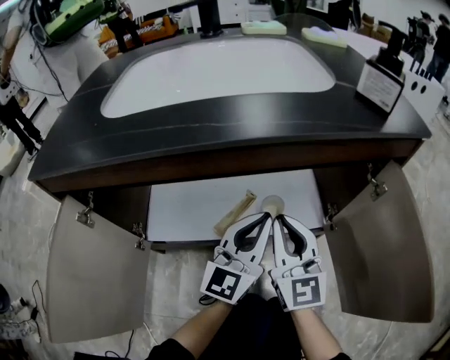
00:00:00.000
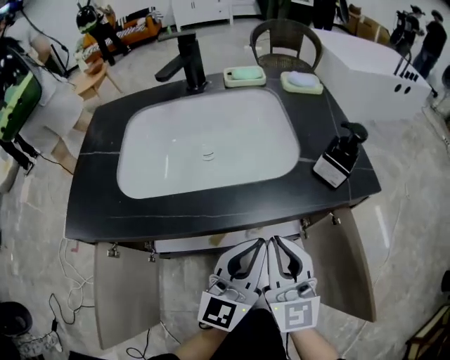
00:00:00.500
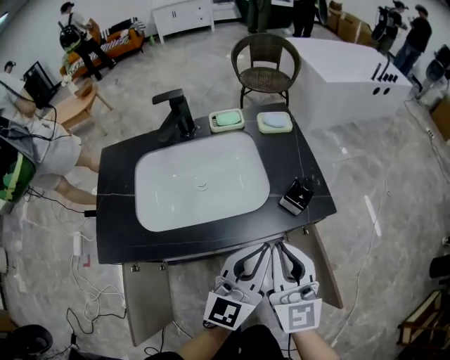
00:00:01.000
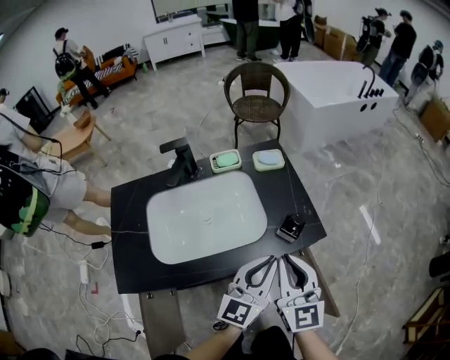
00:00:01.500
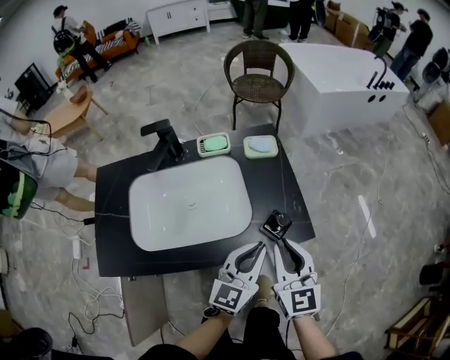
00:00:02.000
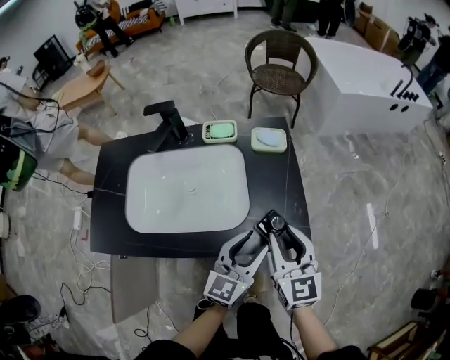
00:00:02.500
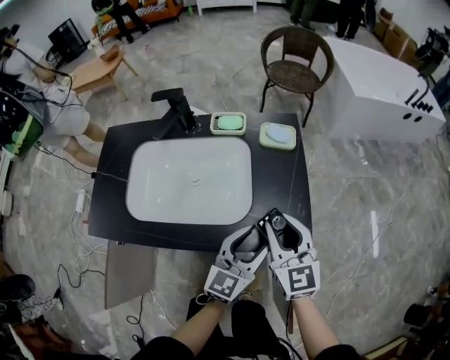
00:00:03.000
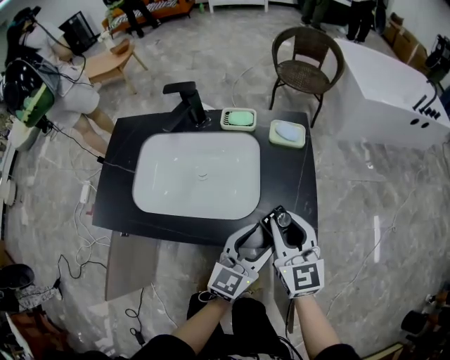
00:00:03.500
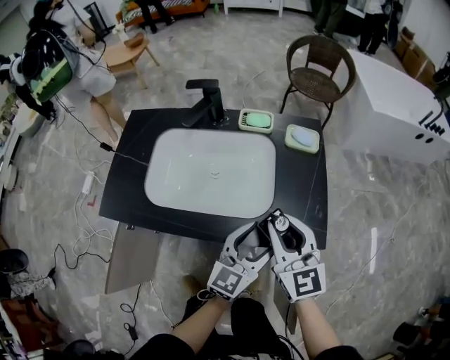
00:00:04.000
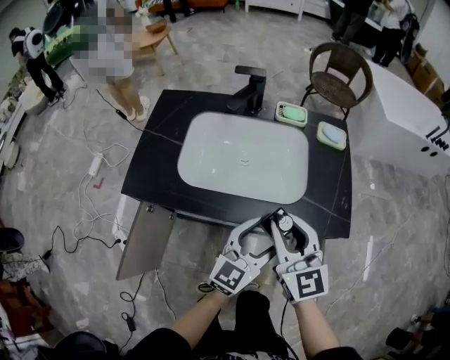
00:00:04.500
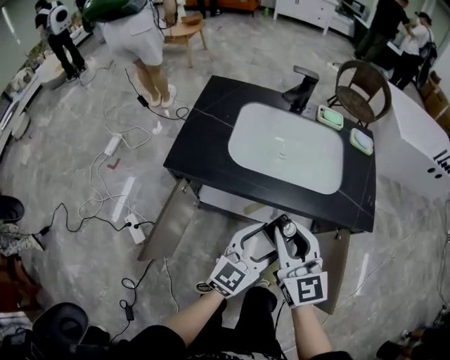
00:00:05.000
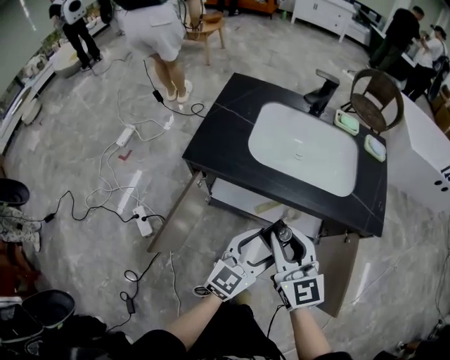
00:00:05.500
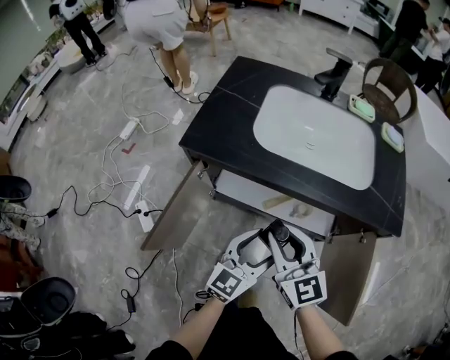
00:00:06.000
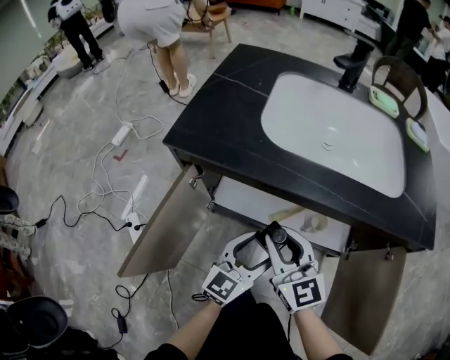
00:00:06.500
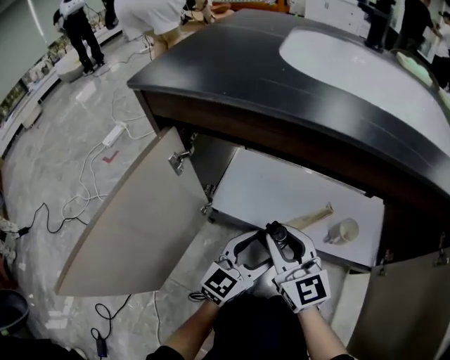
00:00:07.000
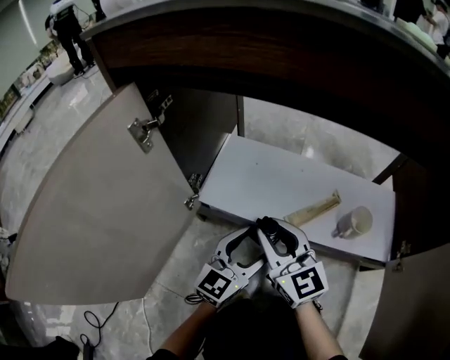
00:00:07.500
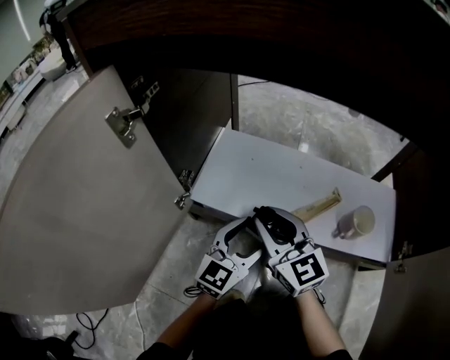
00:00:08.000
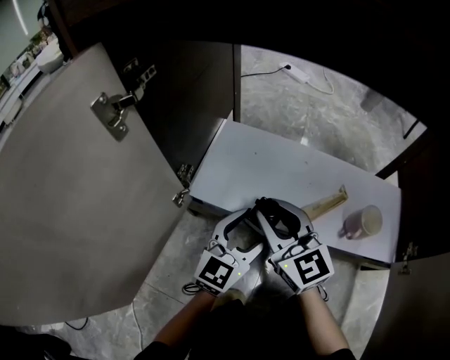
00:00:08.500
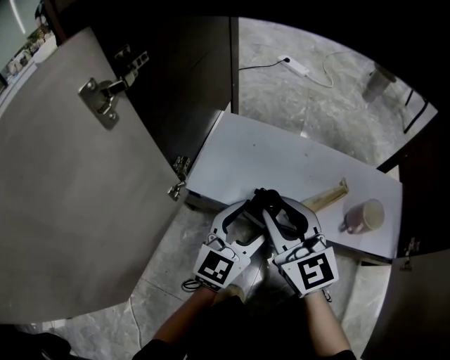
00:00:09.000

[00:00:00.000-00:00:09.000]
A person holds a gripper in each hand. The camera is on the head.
00:00:00.000 to 00:00:02.000: Both grippers move upward, approximately 35 cm. The left gripper rotates some 20 degrees.
00:00:02.000 to 00:00:04.500: The right gripper shifts roughly 15 cm to the left, and turns by approximately 30 degrees, while the left gripper is displaced to the left and backward by about 10 cm, and opens its fingers.
00:00:04.500 to 00:00:07.000: Both grippers move downward and to the left, approximately 50 cm.
00:00:07.000 to 00:00:09.000: The grippers both shift downward and forward by some 15 cm.

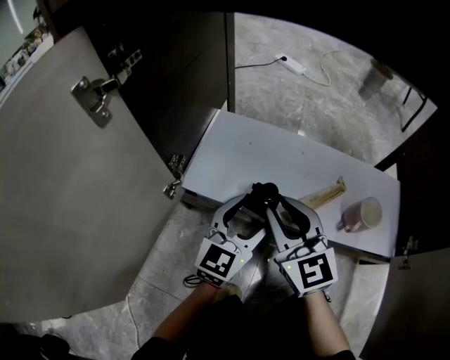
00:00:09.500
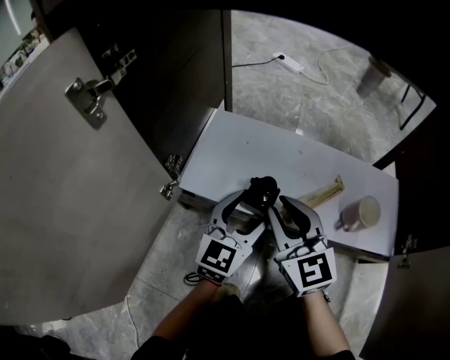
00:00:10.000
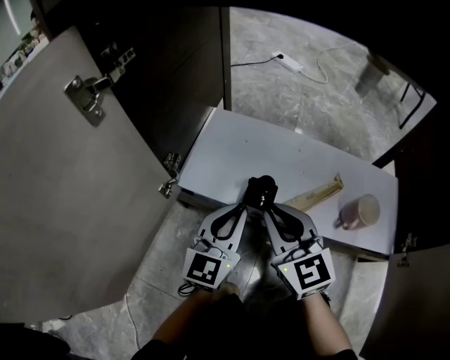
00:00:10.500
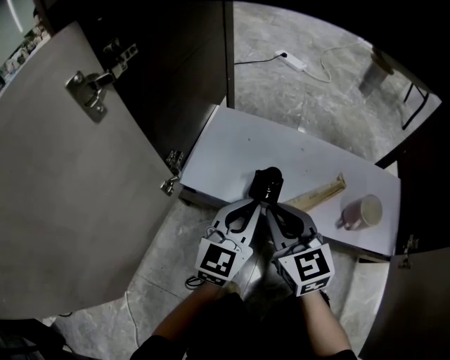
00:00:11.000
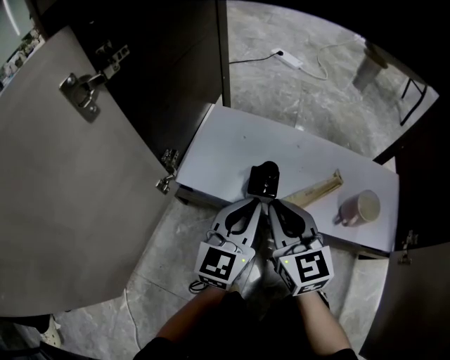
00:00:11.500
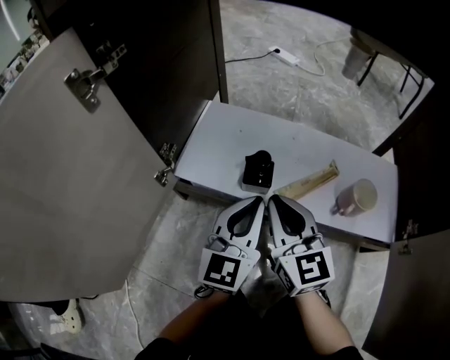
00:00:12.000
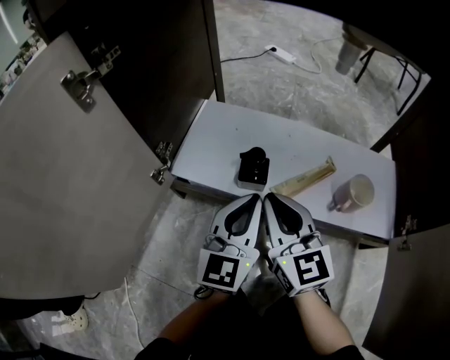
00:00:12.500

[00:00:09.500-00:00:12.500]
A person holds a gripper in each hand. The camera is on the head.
00:00:09.500 to 00:00:11.000: The left gripper closes its fingers.
00:00:11.000 to 00:00:12.500: The left gripper ends up some 5 cm from where it was, while the right gripper ends up some 5 cm from where it was.

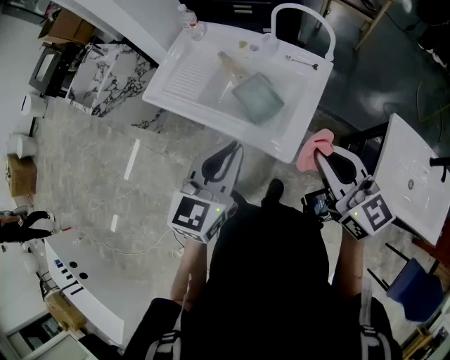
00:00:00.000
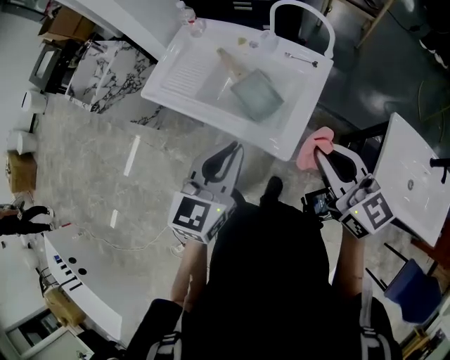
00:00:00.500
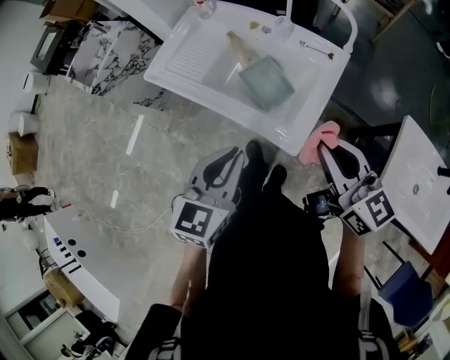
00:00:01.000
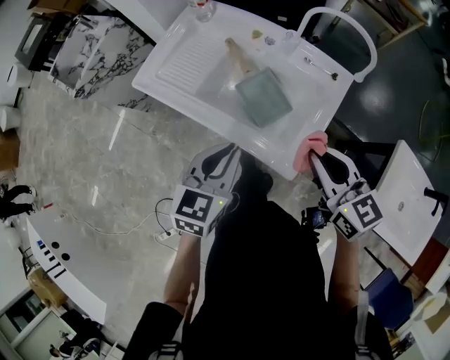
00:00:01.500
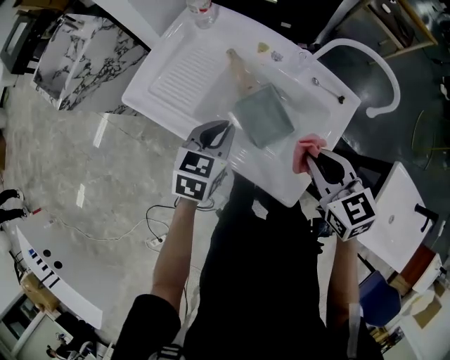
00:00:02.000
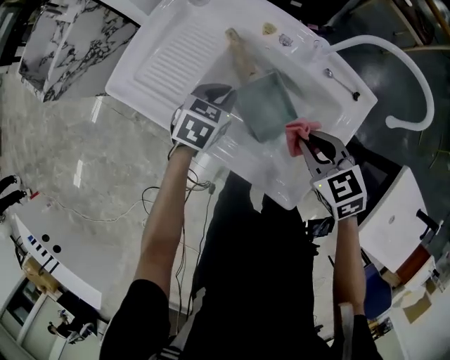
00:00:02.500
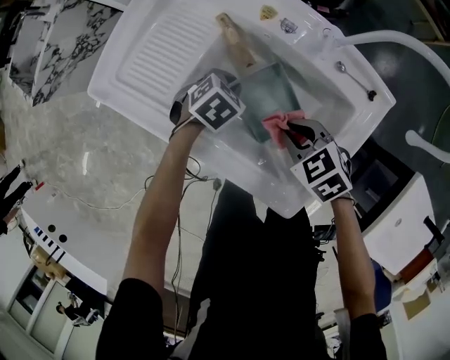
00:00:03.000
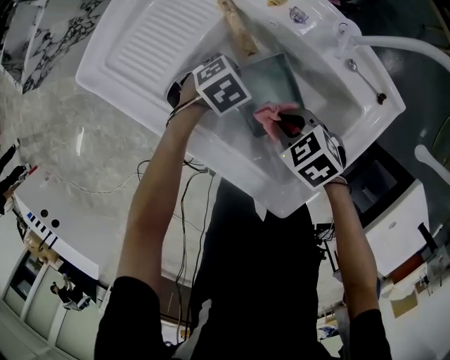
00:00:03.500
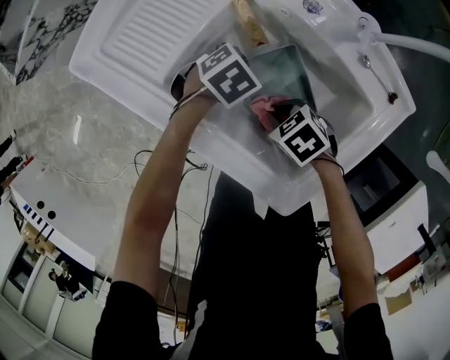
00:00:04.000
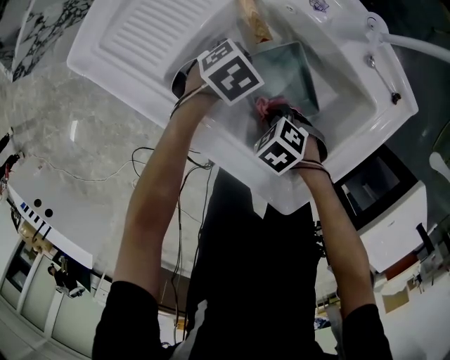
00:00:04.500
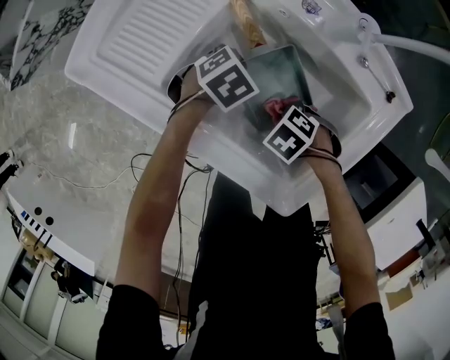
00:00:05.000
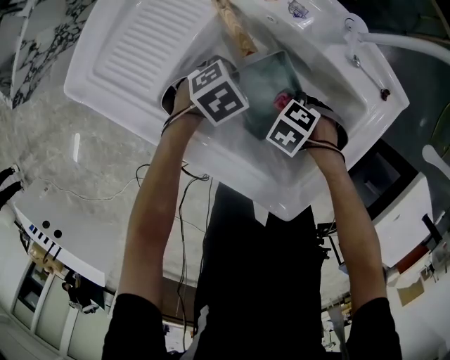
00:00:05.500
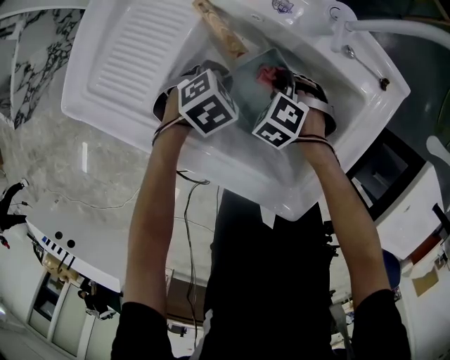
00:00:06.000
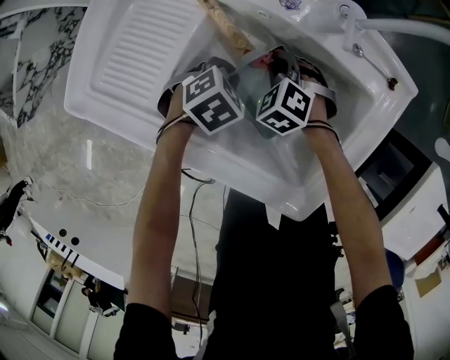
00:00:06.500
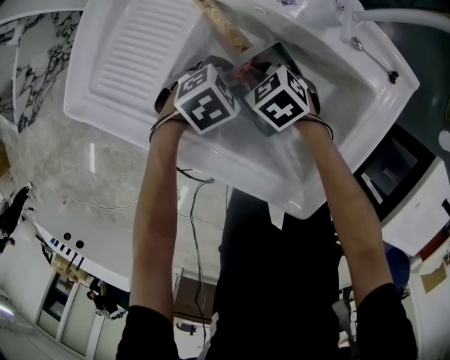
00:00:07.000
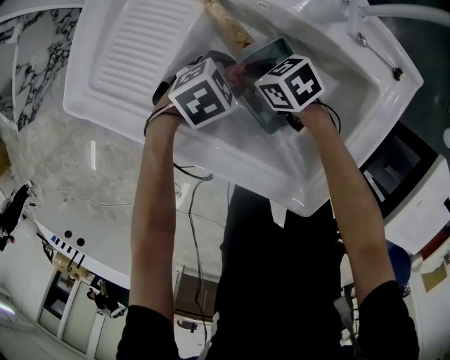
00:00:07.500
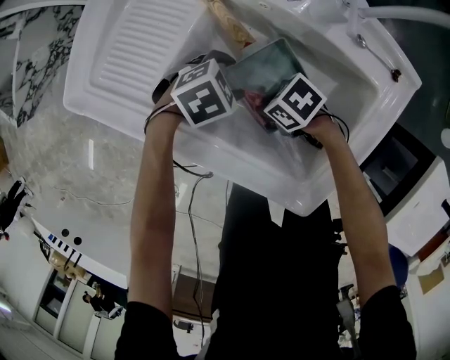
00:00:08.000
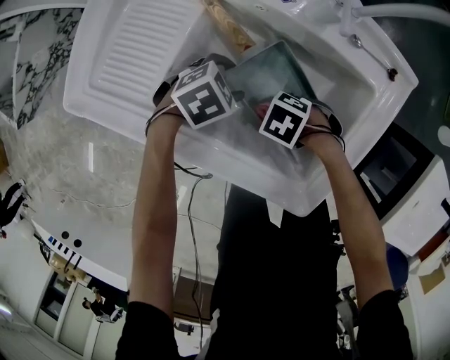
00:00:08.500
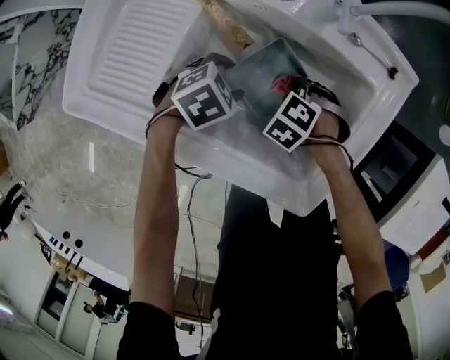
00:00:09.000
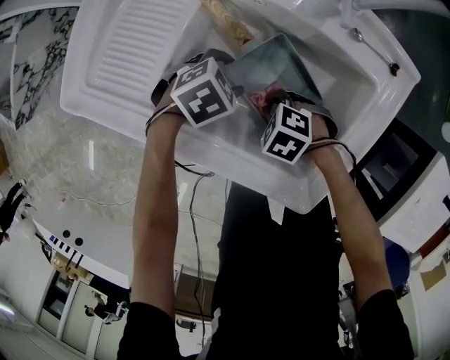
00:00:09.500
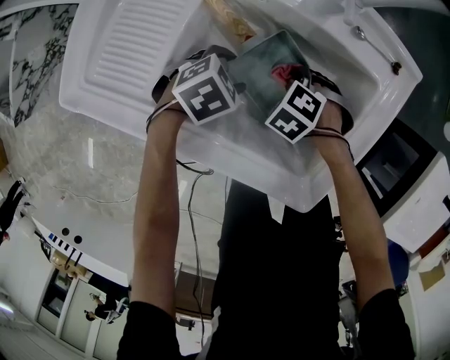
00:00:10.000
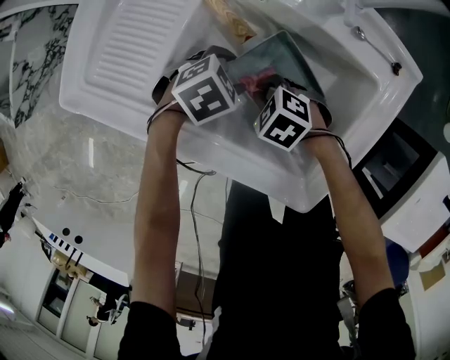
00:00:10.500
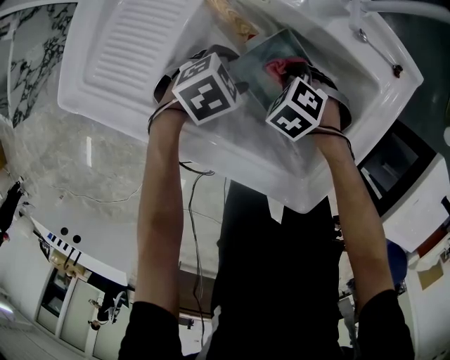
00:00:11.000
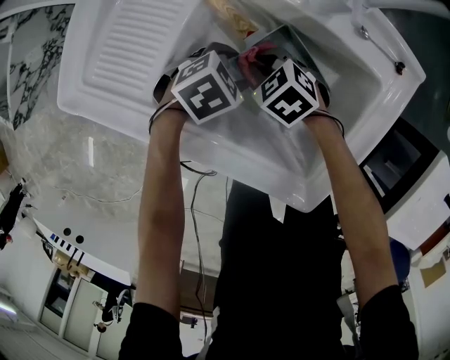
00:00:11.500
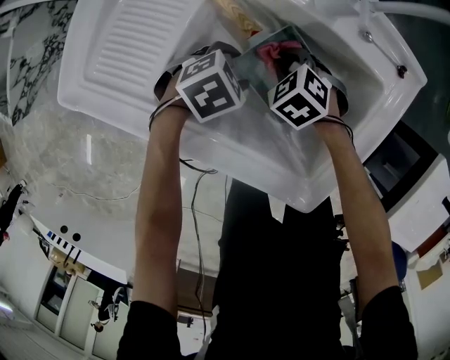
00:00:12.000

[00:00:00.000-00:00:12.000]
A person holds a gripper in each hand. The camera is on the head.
00:00:00.000 to 00:00:02.000: Both grippers move forward and downward, roughly 25 cm. The right gripper swivels about 30 degrees. The left gripper swivels about 20 degrees.
00:00:02.000 to 00:00:04.000: Both grippers travel together downward, about 30 cm. The left gripper points its fingers about 30 degrees further downward, while the right gripper rotates some 50 degrees.
00:00:04.000 to 00:00:06.000: The right gripper changes place by approximately 10 cm, and rotates about 40 degrees.
00:00:06.000 to 00:00:08.000: The left gripper opens; the right gripper changes place by about 10 cm, and swivels roughly 60 degrees.
00:00:08.000 to 00:00:10.000: The right gripper ends up approximately 10 cm from where it was, and points its fingers some 30 degrees further downward.

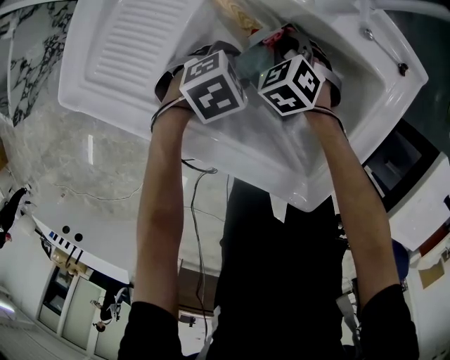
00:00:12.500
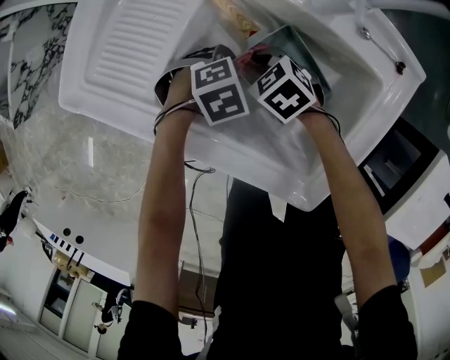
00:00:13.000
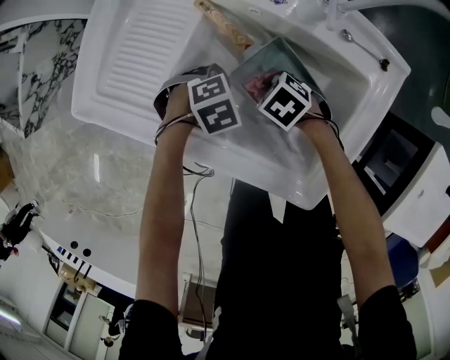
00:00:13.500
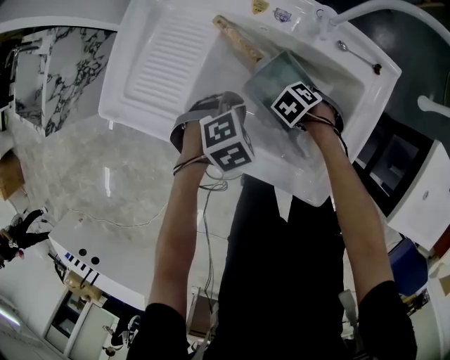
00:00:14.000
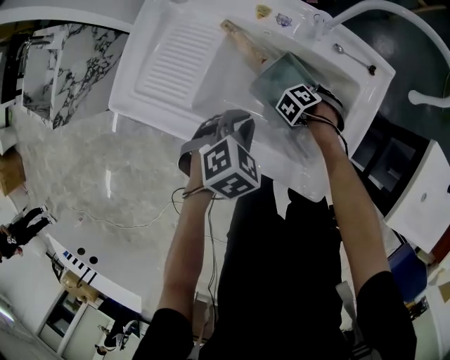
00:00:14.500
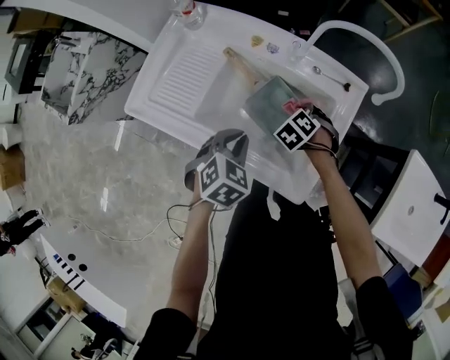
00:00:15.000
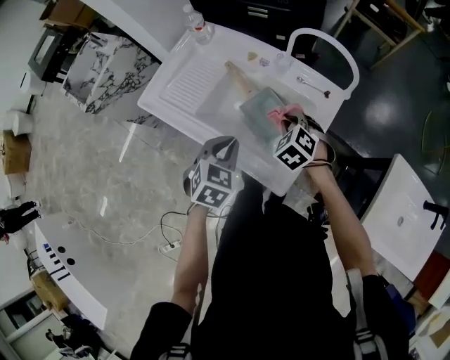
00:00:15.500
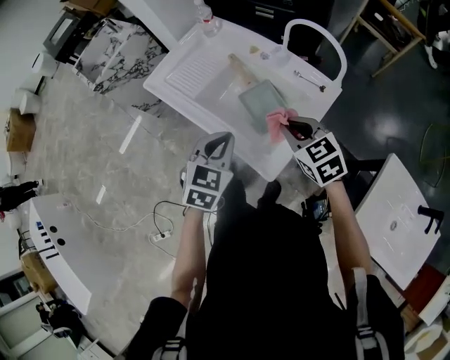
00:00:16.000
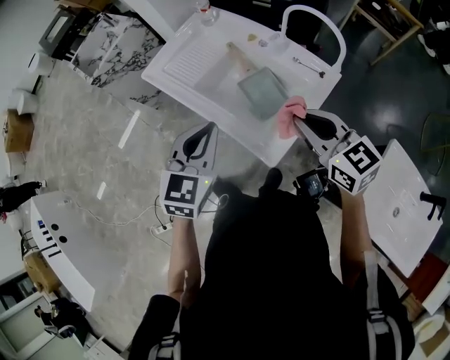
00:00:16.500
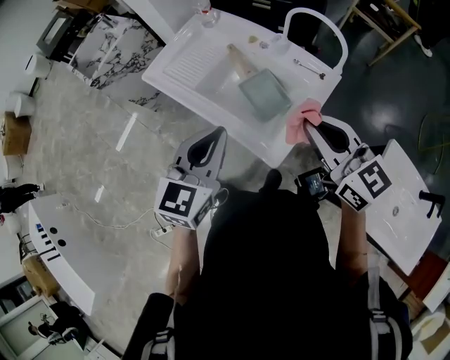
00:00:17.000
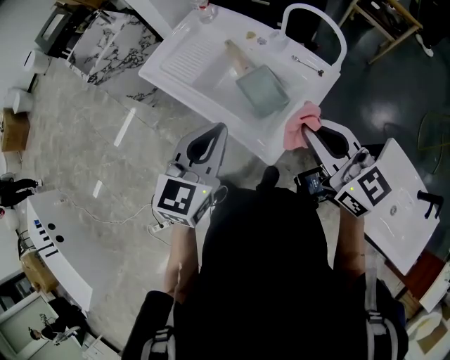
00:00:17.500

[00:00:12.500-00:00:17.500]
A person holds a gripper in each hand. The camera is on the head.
00:00:12.500 to 00:00:15.000: The right gripper moves approximately 15 cm, while the left gripper travels upward by roughly 20 cm, turns by about 30 degrees, and closes up.
00:00:15.000 to 00:00:17.500: The left gripper is displaced upward by some 25 cm, and angles its fingers upward, by approximately 40 degrees. Meanwhile the right gripper is displaced upward by some 40 cm, and angles its fingers upward, by about 70 degrees.
